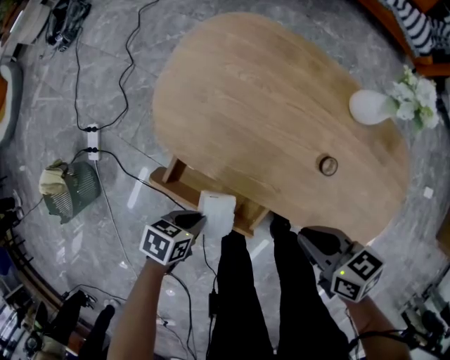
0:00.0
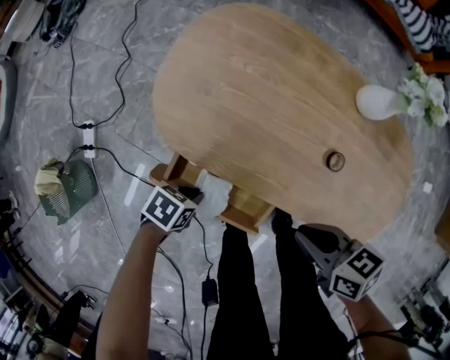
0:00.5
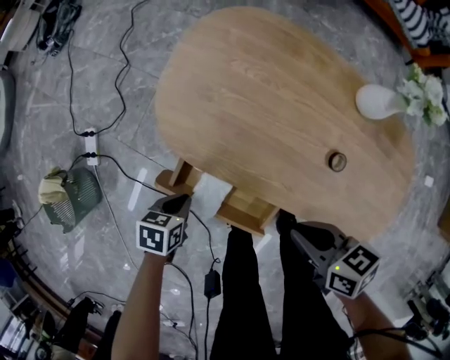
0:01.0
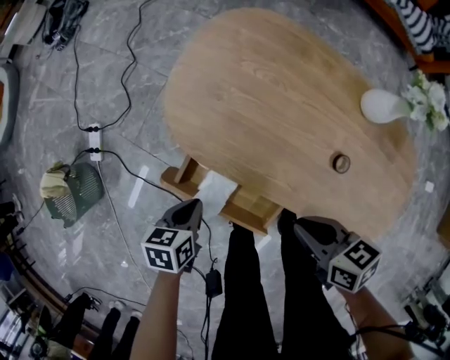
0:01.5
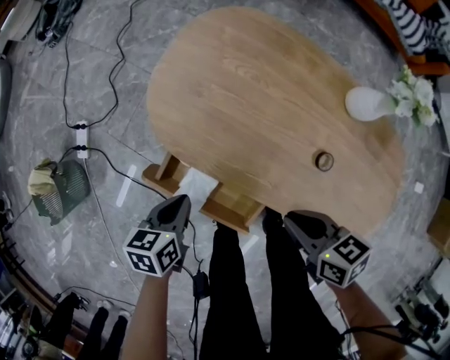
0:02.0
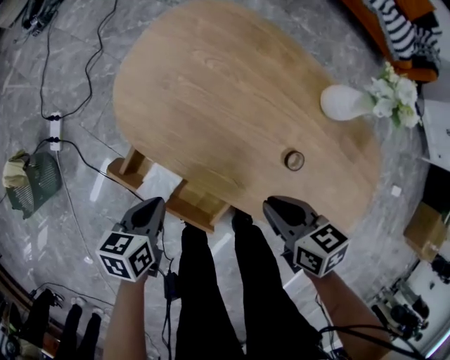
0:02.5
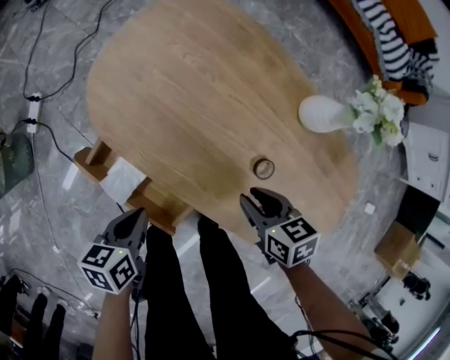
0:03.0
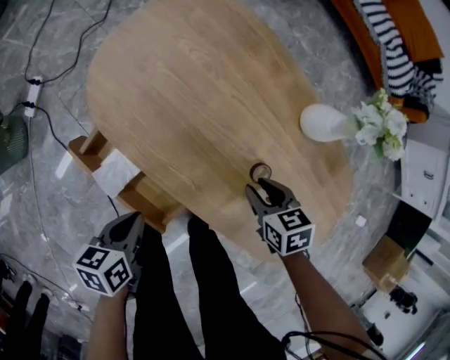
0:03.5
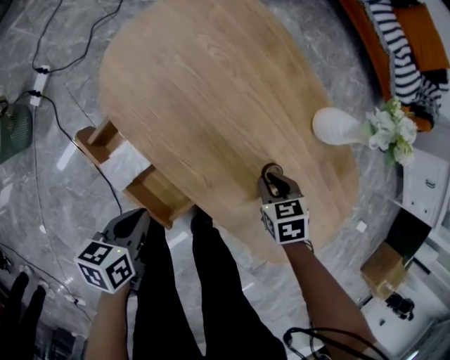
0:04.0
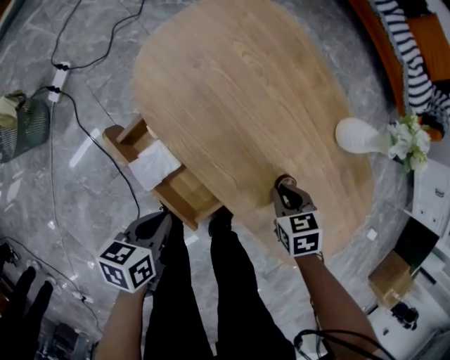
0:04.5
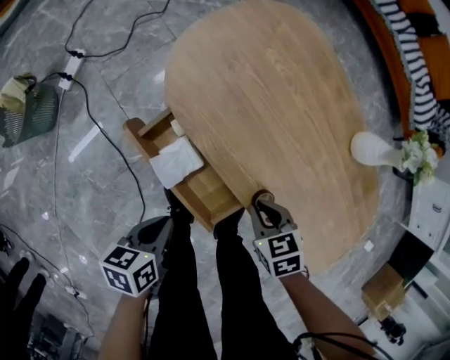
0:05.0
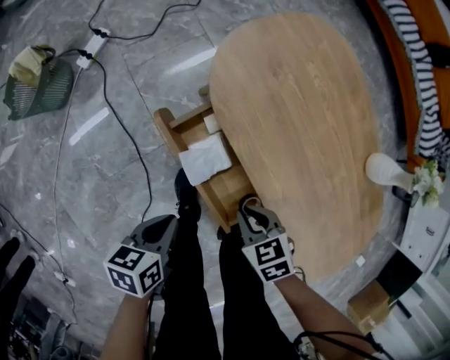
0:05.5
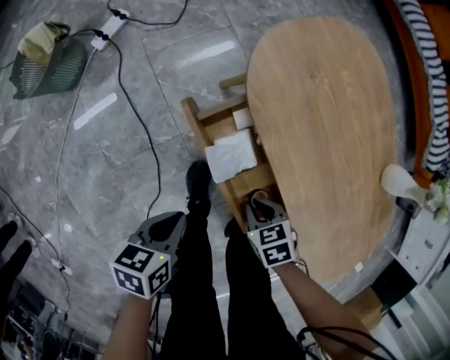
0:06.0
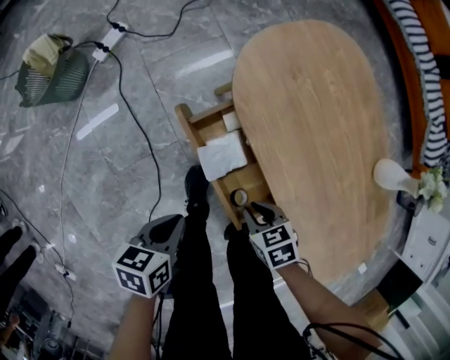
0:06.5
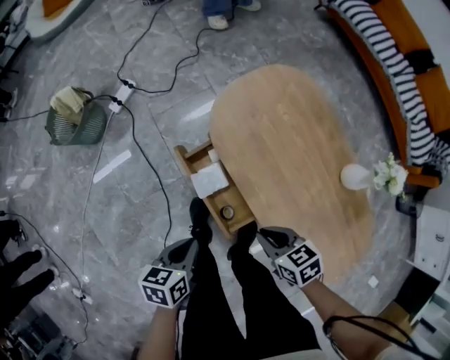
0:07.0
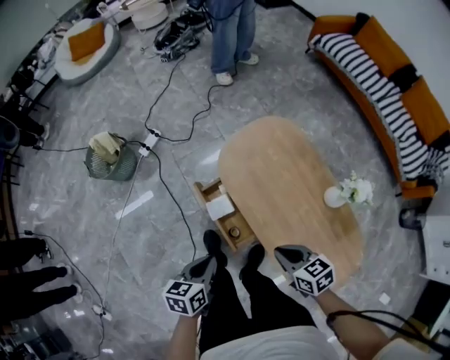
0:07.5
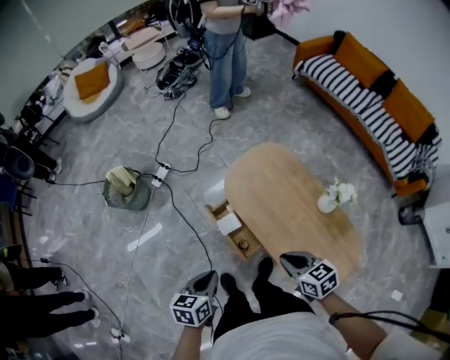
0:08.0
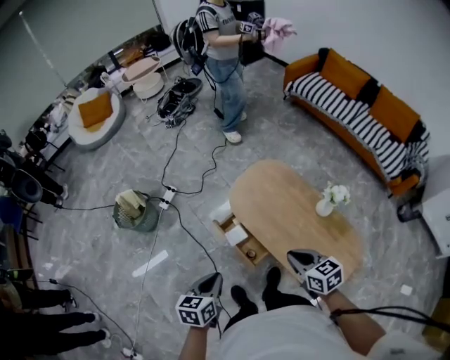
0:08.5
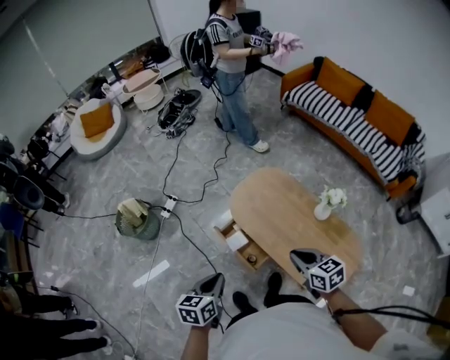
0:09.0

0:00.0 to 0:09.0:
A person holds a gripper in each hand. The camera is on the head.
0:00.0 to 0:02.0: The left gripper shifts by approximately 10 cm, and rotates roughly 30 degrees.
0:02.0 to 0:04.5: The left gripper is displaced backward and to the right by roughly 10 cm, while the right gripper moves downward and to the right, about 15 cm, turns by approximately 40 degrees, and opens, then closes once more.
0:04.5 to 0:07.0: The left gripper shifts some 10 cm upward; the right gripper changes place by about 20 cm, and swivels about 30 degrees.
0:07.0 to 0:09.0: Both grippers move upward, approximately 35 cm. The right gripper swivels about 30 degrees, while the left gripper rotates about 20 degrees.

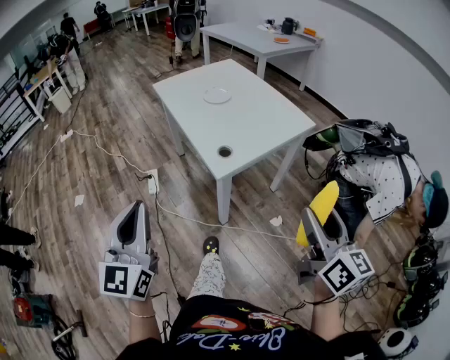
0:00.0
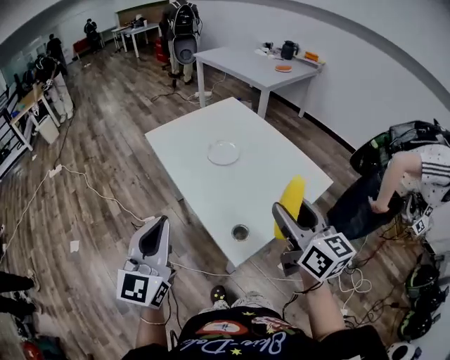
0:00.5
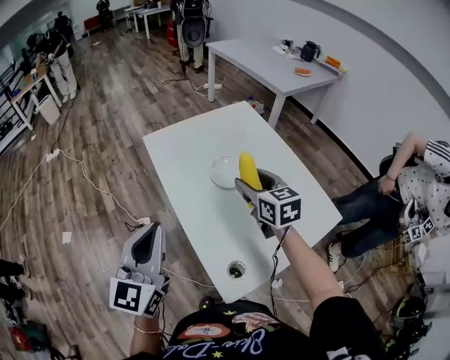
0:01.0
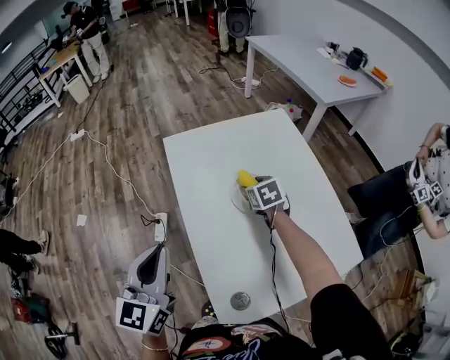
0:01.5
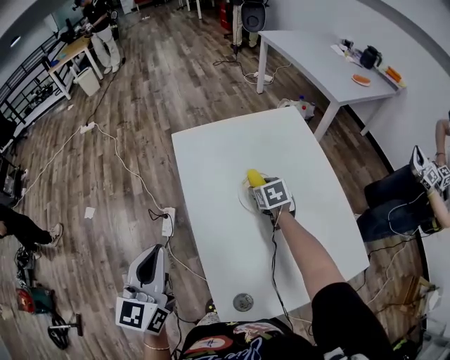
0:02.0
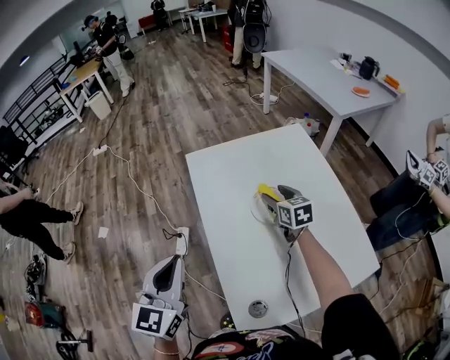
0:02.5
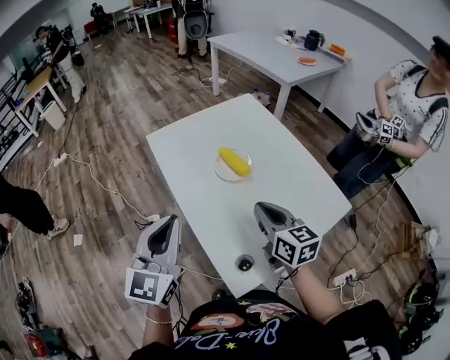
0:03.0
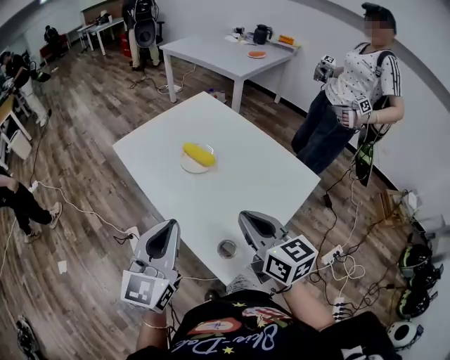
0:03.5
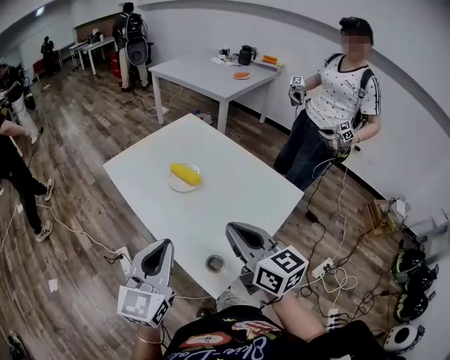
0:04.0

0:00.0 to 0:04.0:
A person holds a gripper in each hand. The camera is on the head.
0:00.0 to 0:02.0: Both grippers are carried forward, approximately 60 cm. The left gripper rotates approximately 20 degrees, while the right gripper tips its fingers downward by approximately 50 degrees.
0:02.0 to 0:04.0: The right gripper changes place by about 50 cm, angles its fingers upward, by about 50 degrees, and closes its fingers. Meanwhile the left gripper ends up some 15 cm from where it was, and turns by about 40 degrees.

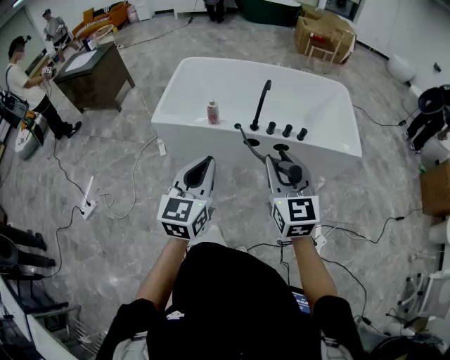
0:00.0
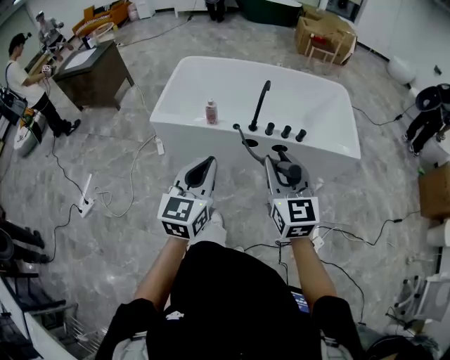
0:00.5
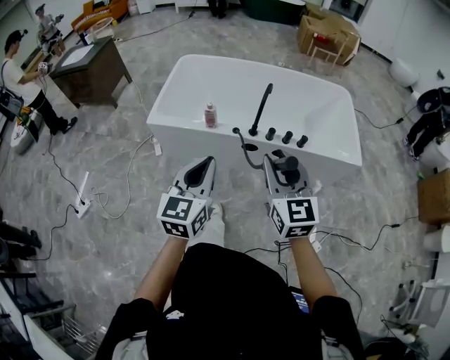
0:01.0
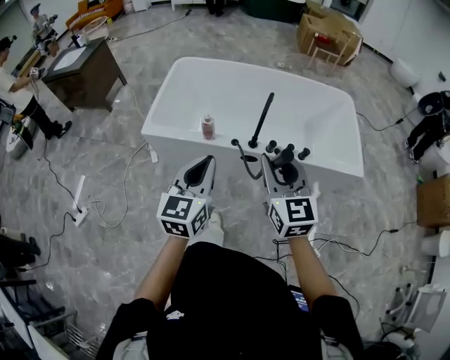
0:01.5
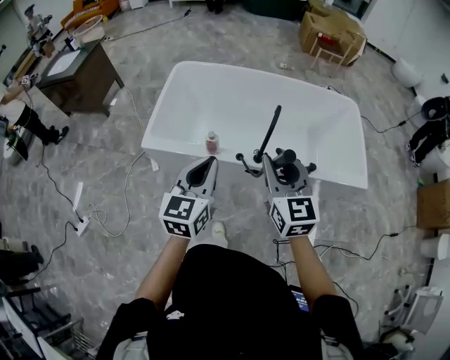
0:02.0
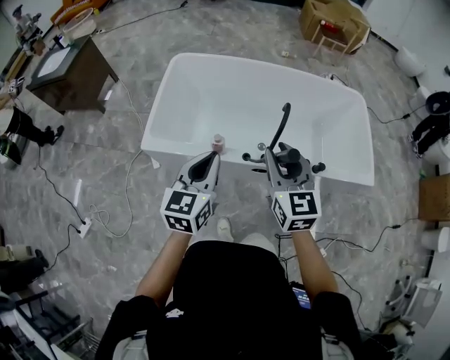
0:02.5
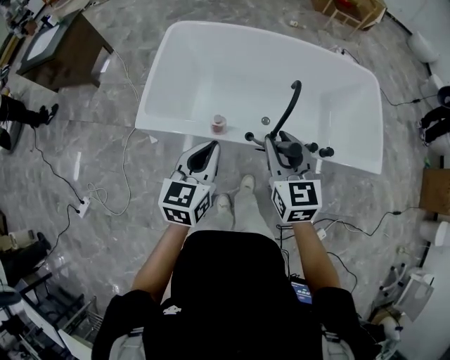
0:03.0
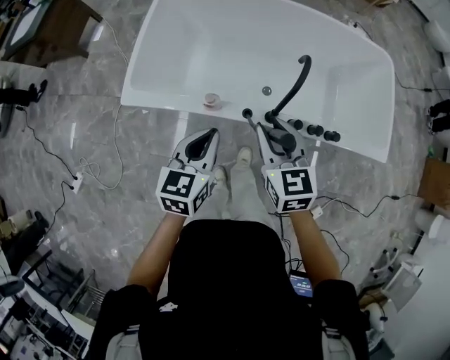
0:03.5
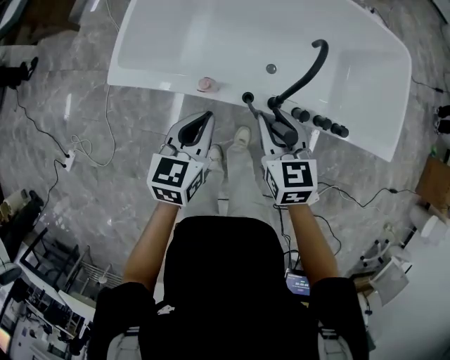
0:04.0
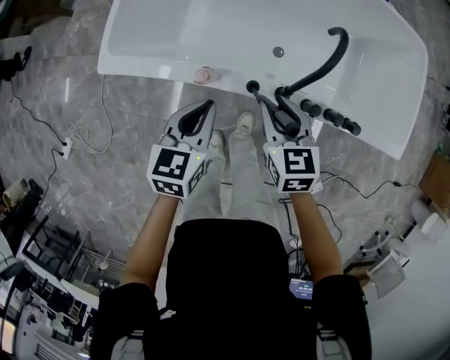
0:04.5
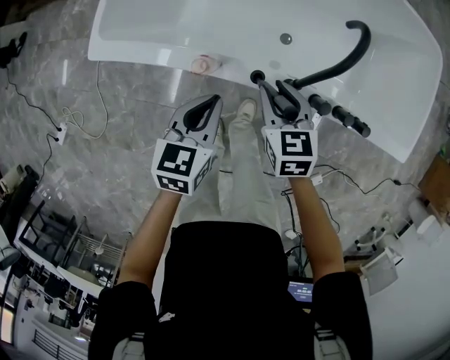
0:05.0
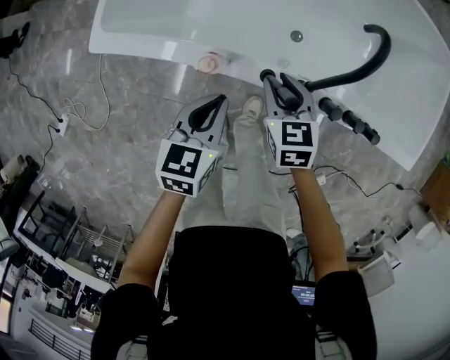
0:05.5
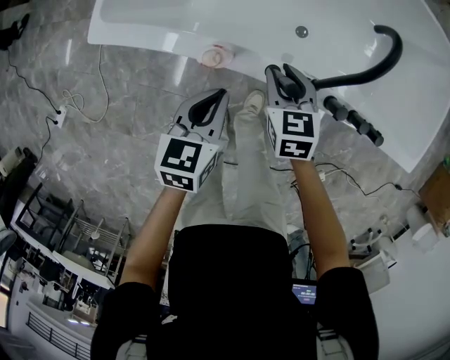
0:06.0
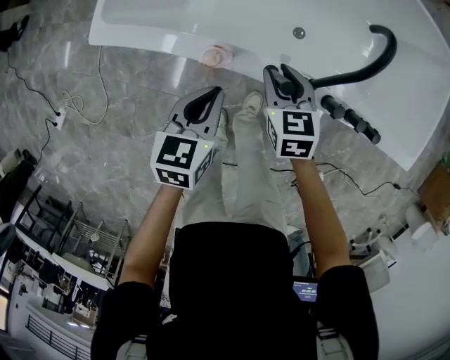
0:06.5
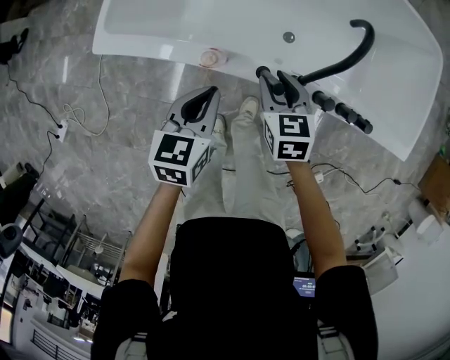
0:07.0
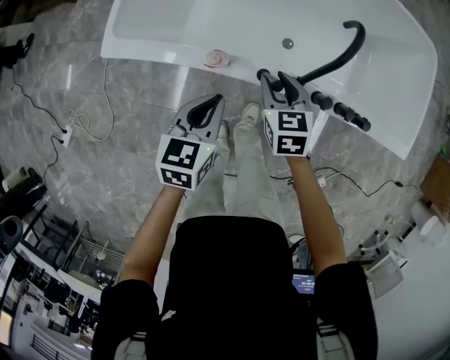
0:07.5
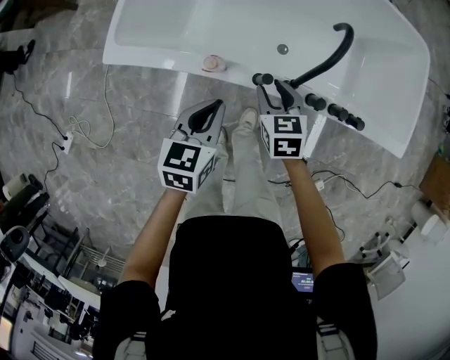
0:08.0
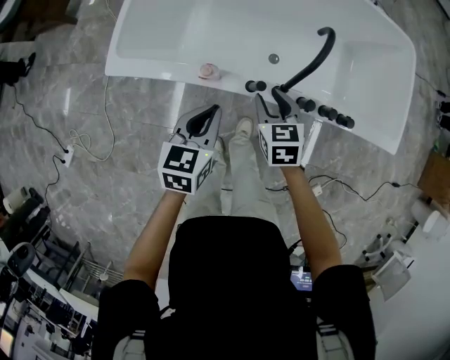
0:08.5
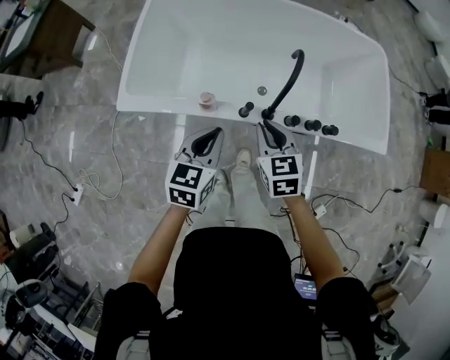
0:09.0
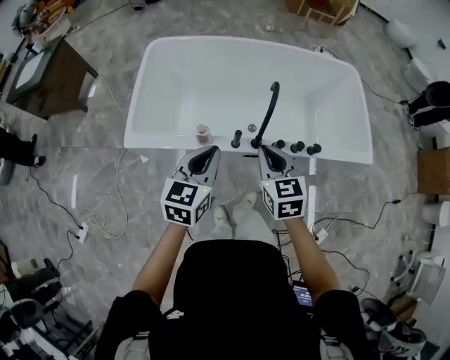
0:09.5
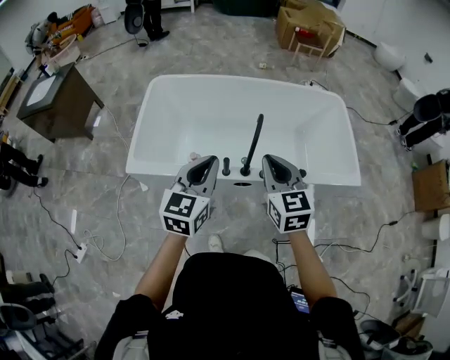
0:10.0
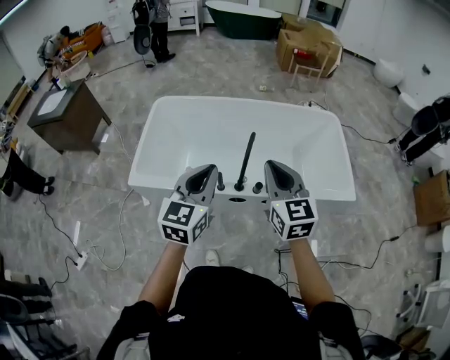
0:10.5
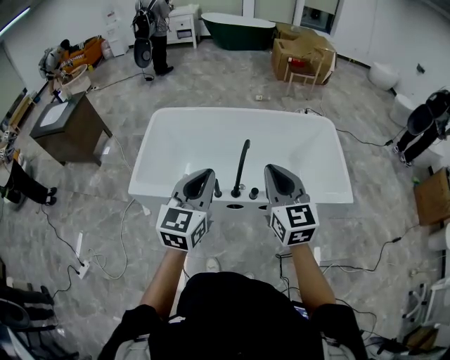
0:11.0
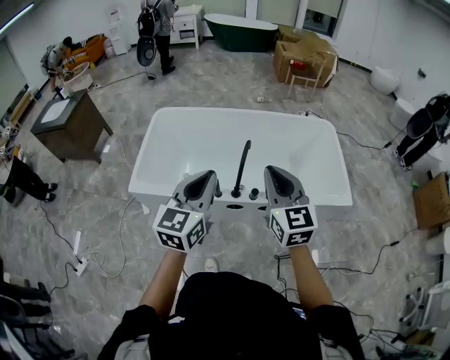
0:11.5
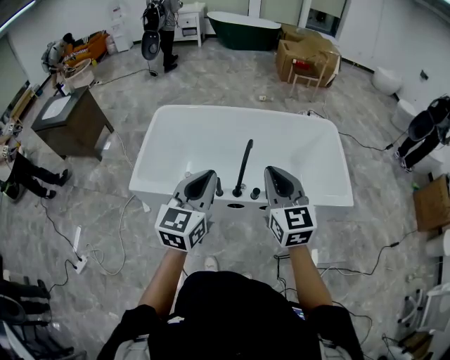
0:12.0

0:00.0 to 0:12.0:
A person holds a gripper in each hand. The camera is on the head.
0:00.0 to 0:02.0: Both grippers move forward, about 30 cm.
0:02.0 to 0:04.0: The grippers both shift downward and forward by about 35 cm. The right gripper swivels roughly 30 degrees; the left gripper swivels roughly 20 degrees.
0:04.0 to 0:06.0: The grippers both shift downward by about 20 cm.
0:06.0 to 0:08.0: Both grippers travel together upward, some 5 cm.
0:08.0 to 0:10.0: The grippers both shift upward by some 35 cm. The right gripper changes its angle by approximately 30 degrees, and closes its fingers, while the left gripper swivels some 30 degrees.
0:10.0 to 0:12.0: Both grippers move upward, to the right and backward, about 10 cm.

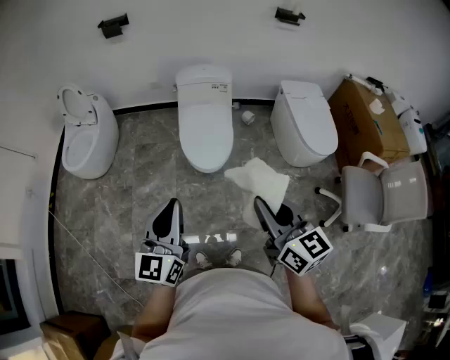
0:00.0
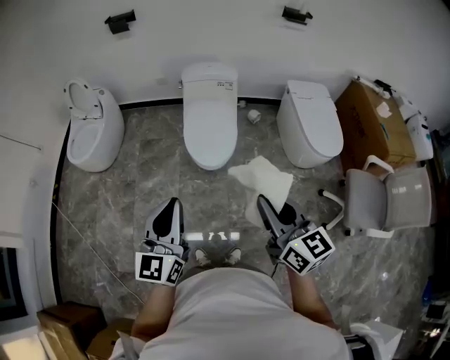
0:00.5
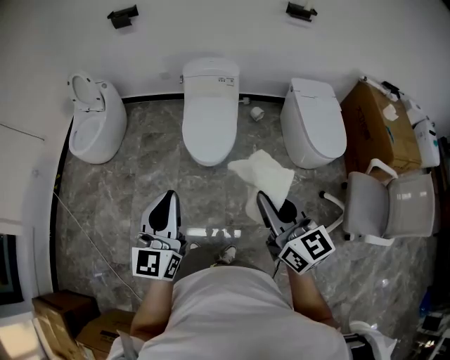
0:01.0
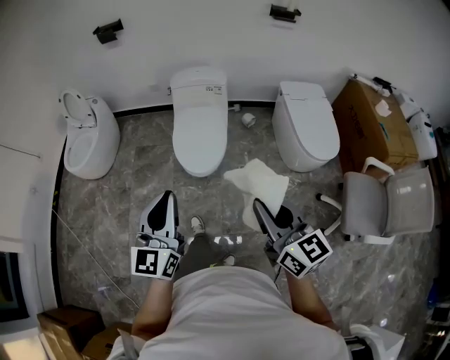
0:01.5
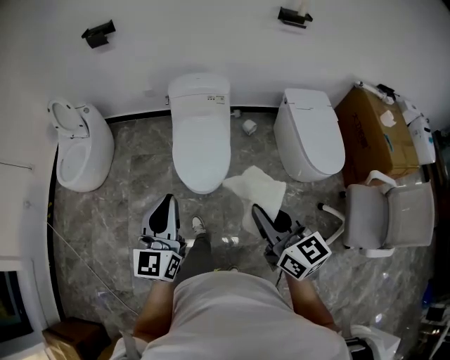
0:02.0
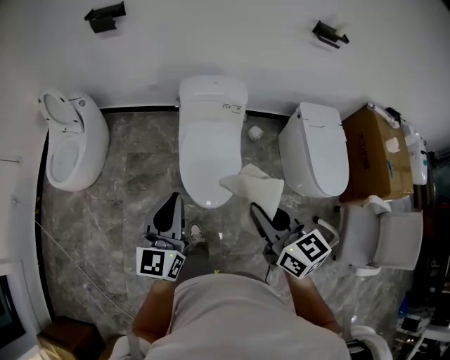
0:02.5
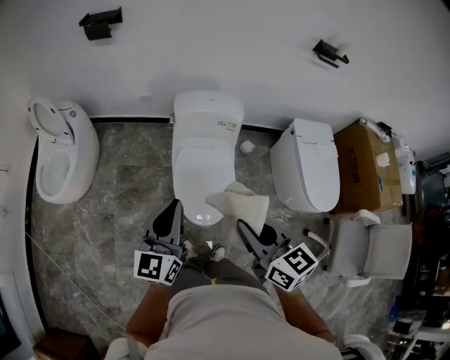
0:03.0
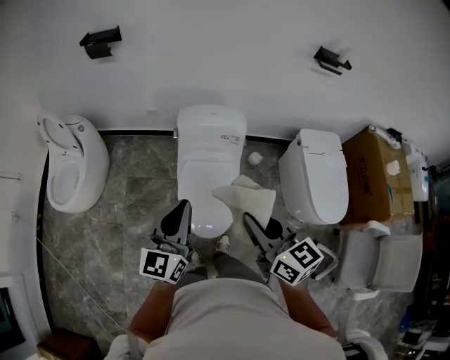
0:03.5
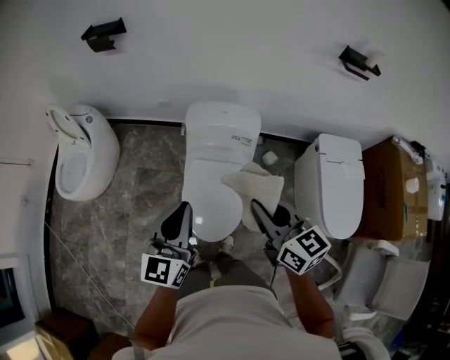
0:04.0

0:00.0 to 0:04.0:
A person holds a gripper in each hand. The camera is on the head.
0:00.0 to 0:02.0: Both grippers travel together forward and to the right, some 20 cm.
0:02.0 to 0:04.0: The grippers both shift forward by roughly 40 cm.
